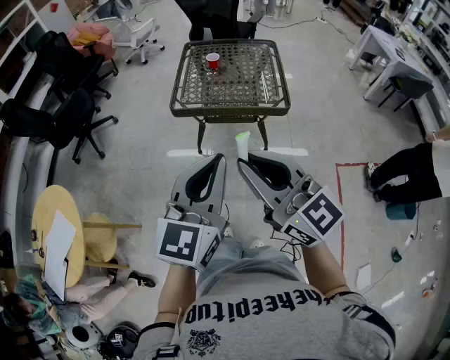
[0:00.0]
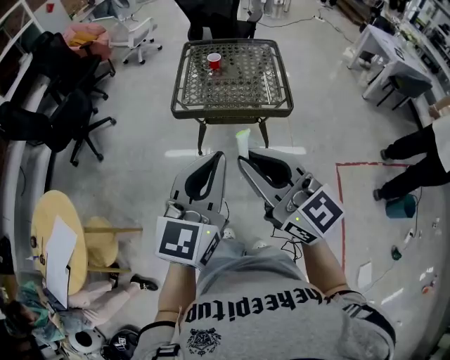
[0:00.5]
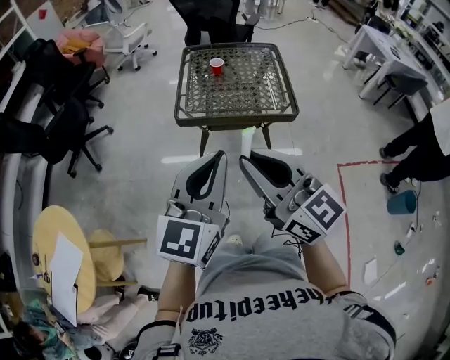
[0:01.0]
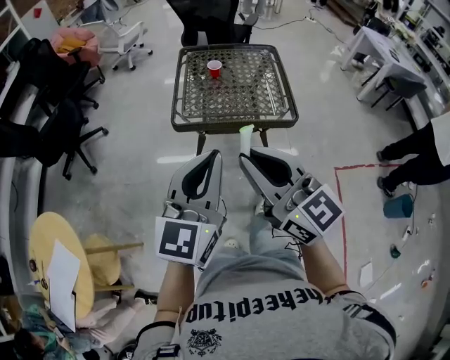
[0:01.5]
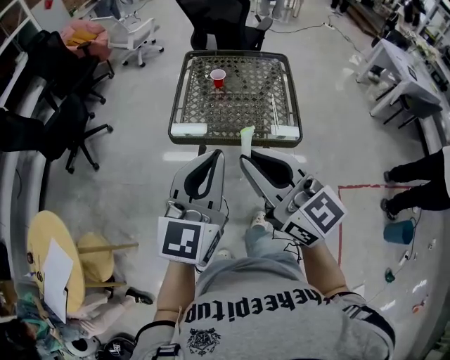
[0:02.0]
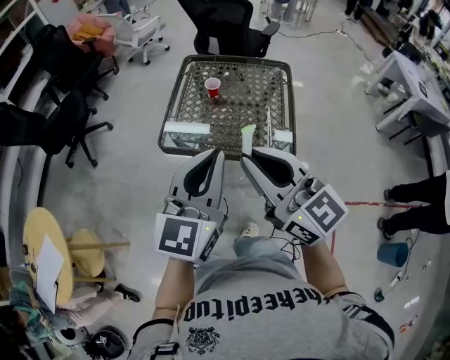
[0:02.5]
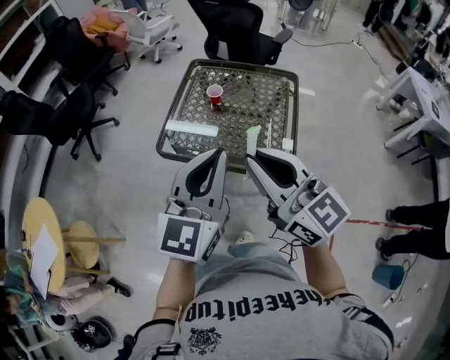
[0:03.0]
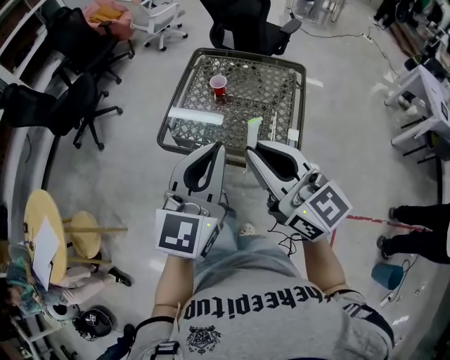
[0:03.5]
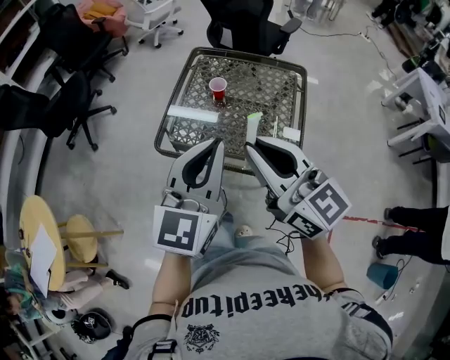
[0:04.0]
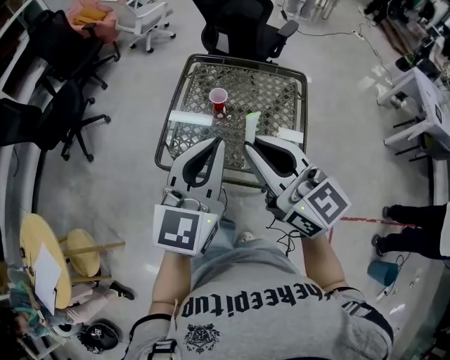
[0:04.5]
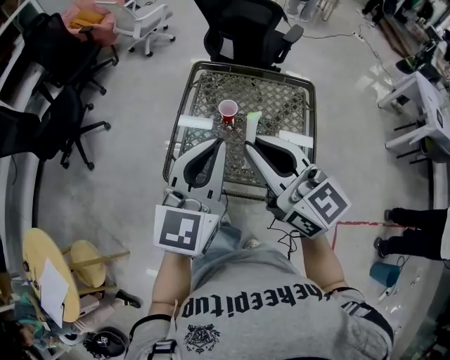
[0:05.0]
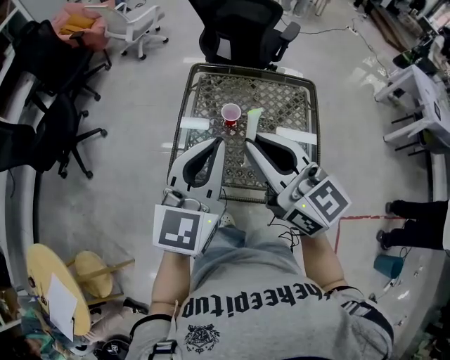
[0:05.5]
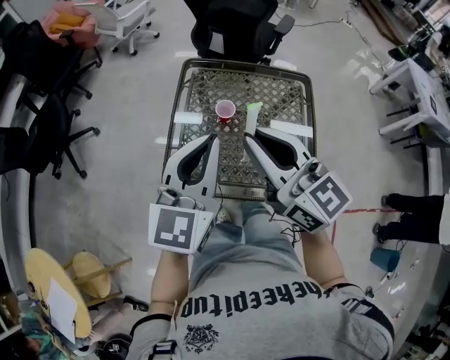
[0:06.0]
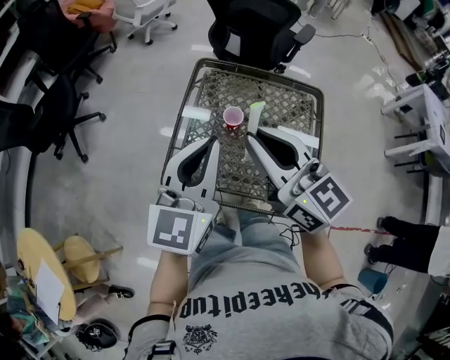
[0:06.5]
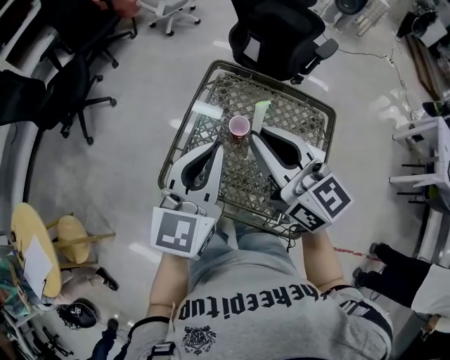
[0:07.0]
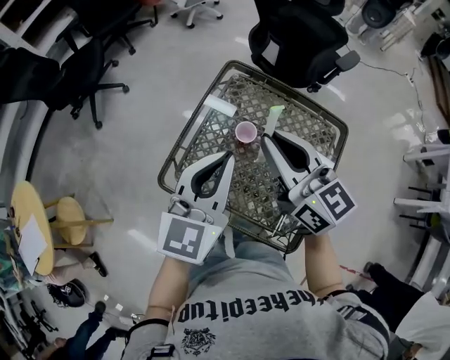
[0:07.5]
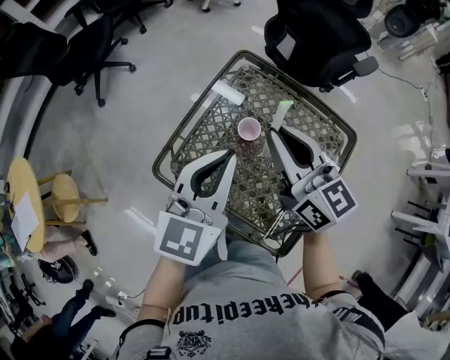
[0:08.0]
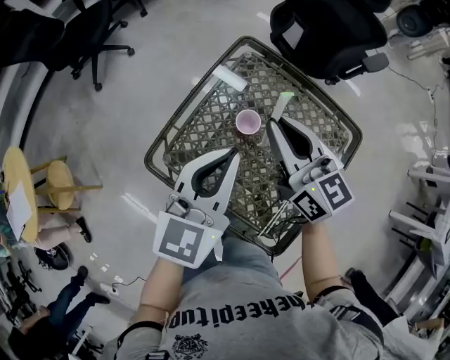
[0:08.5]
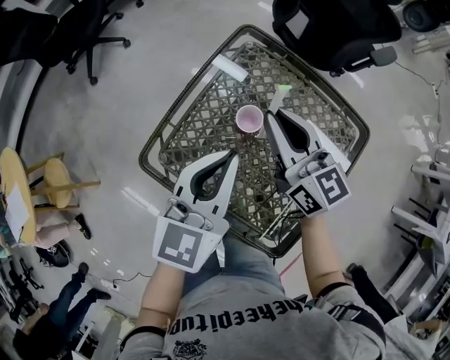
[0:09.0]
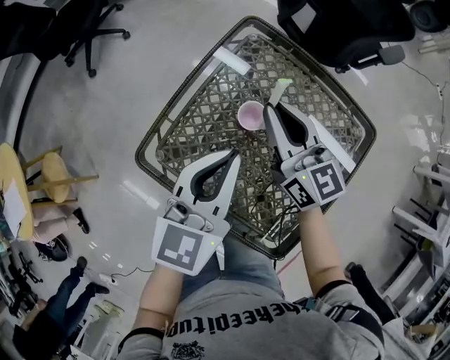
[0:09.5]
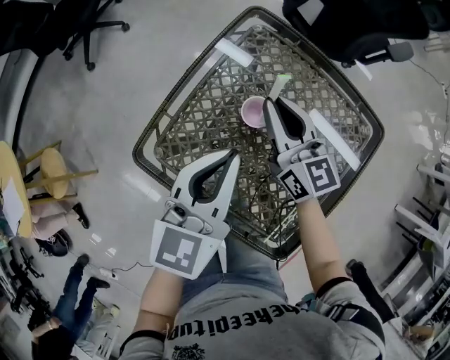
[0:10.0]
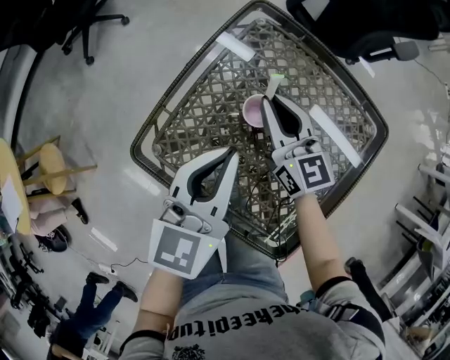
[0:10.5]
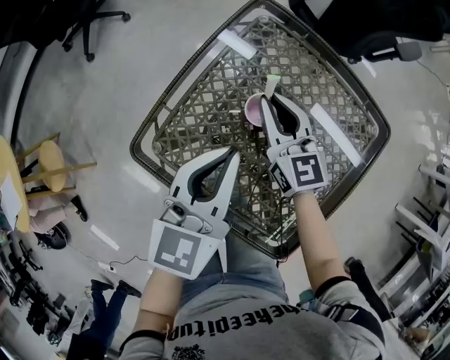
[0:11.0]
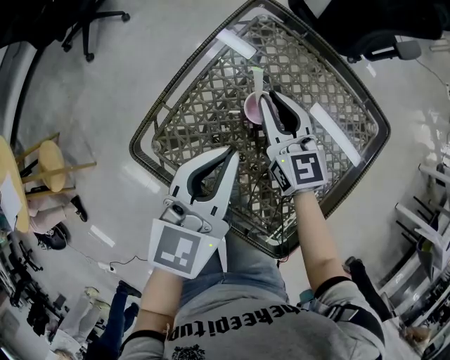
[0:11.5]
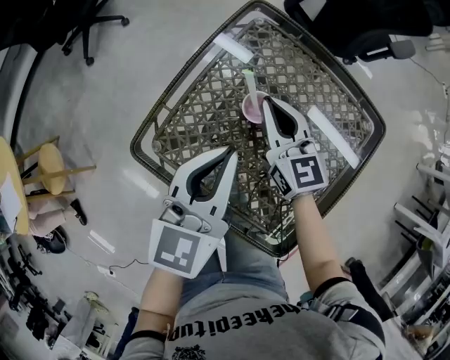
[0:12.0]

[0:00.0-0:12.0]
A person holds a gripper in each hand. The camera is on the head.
0:00.0 to 0:02.0: The grippers both shift forward by roughly 20 cm.
0:02.0 to 0:04.0: The two grippers go roughly 20 cm forward and to the right.
0:04.0 to 0:06.0: The two grippers go roughly 20 cm forward.
0:06.0 to 0:08.0: The right gripper is displaced forward, downward and to the right by approximately 20 cm, and changes its angle by some 20 degrees. Meanwhile the left gripper moves downward, forward and to the right, approximately 10 cm, and swivels approximately 20 degrees.
0:08.0 to 0:10.0: The right gripper heads downward and forward, covering approximately 20 cm. Meanwhile the left gripper travels downward by roughly 10 cm.
0:10.0 to 0:12.0: The grippers move only a little.

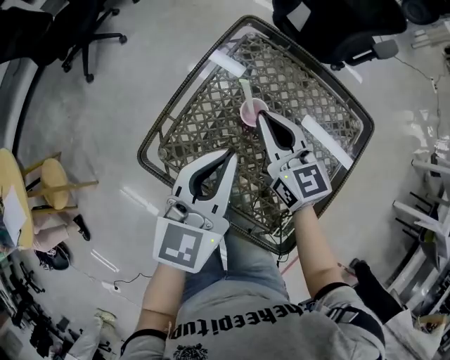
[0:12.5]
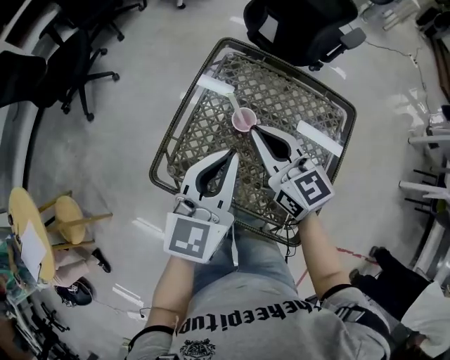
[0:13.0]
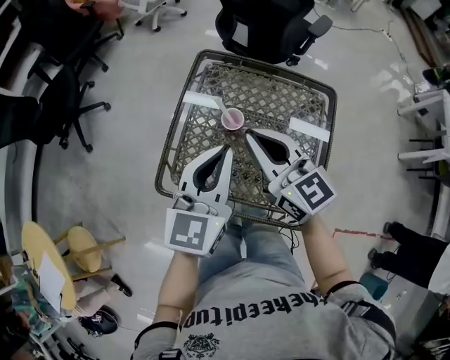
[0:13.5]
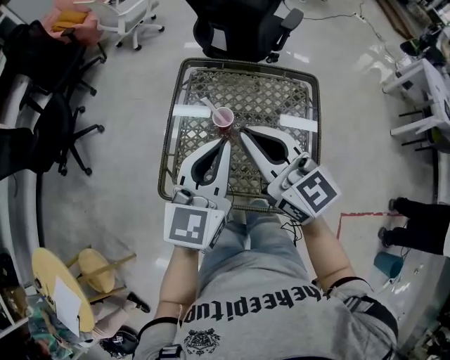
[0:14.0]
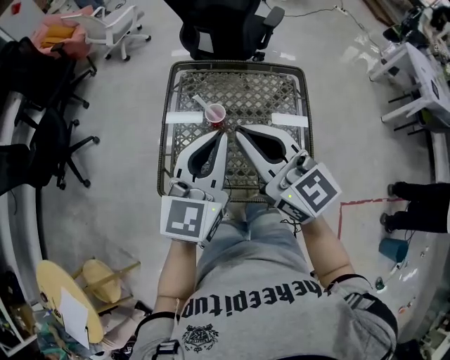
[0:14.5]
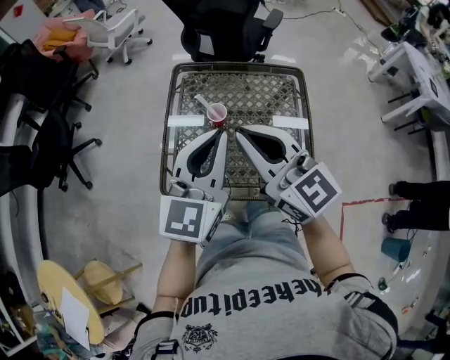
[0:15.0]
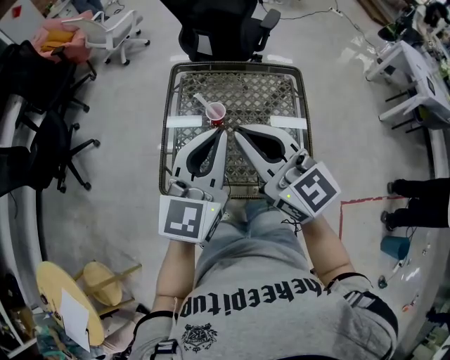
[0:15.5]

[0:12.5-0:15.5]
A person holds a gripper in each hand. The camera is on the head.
0:12.5 to 0:14.0: The right gripper moves upward and backward, roughly 25 cm; the left gripper is displaced upward by about 10 cm, and swivels roughly 20 degrees.
0:14.0 to 0:15.5: The left gripper moves some 5 cm. The right gripper travels backward by about 5 cm.

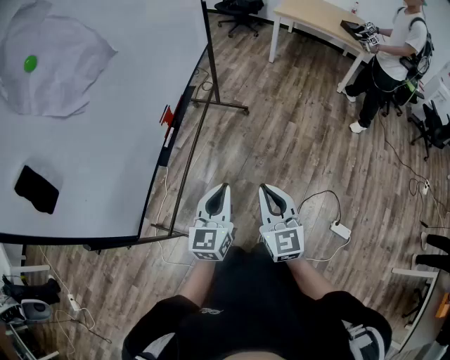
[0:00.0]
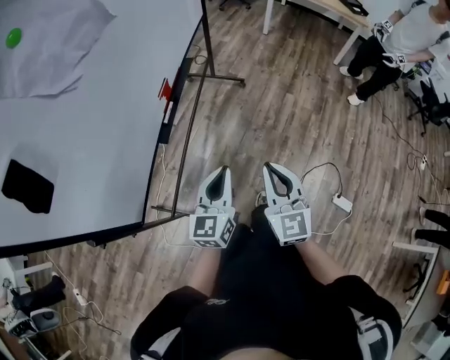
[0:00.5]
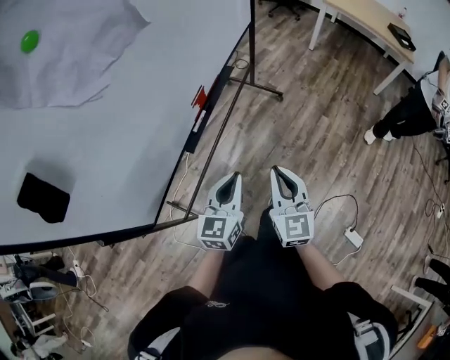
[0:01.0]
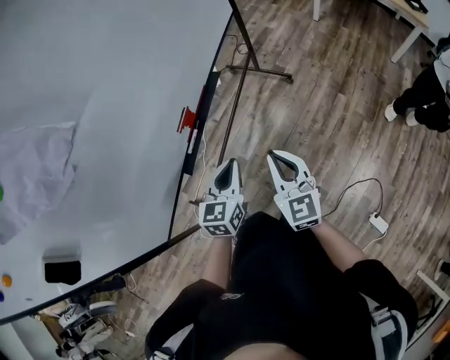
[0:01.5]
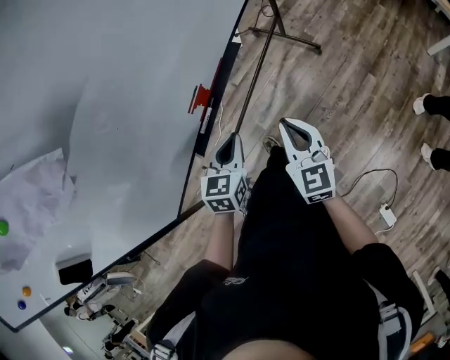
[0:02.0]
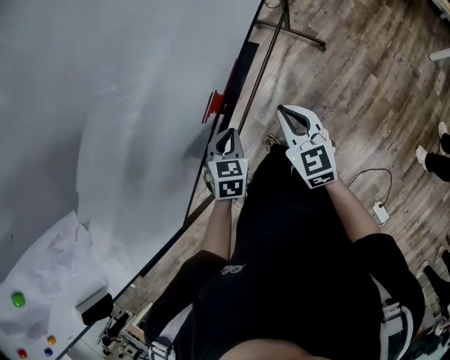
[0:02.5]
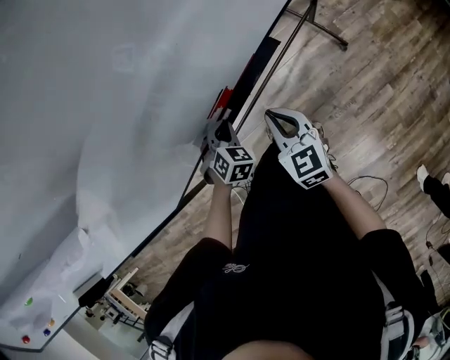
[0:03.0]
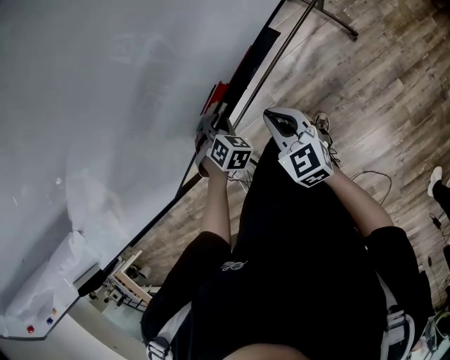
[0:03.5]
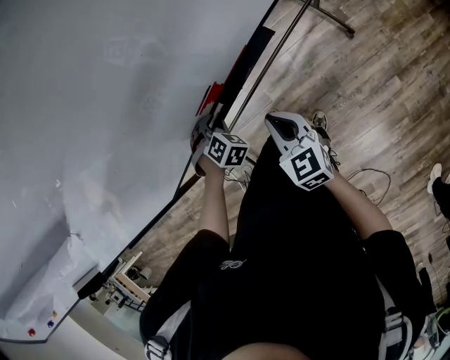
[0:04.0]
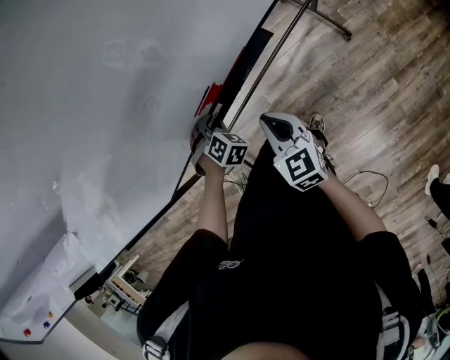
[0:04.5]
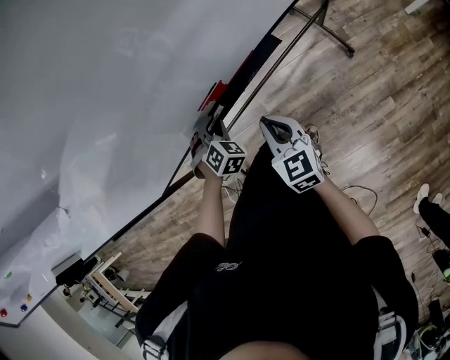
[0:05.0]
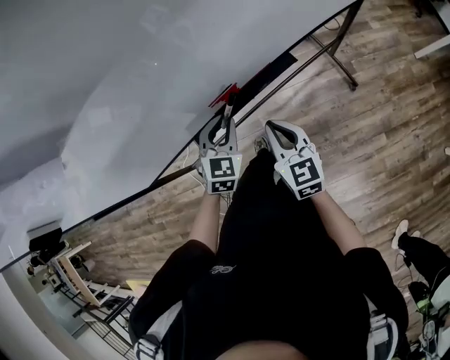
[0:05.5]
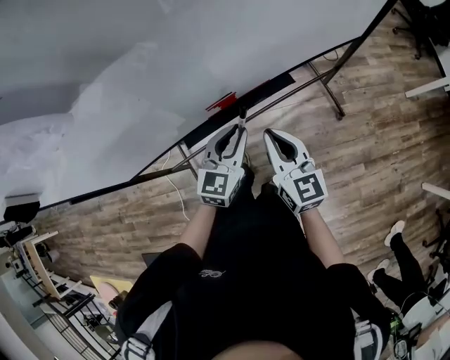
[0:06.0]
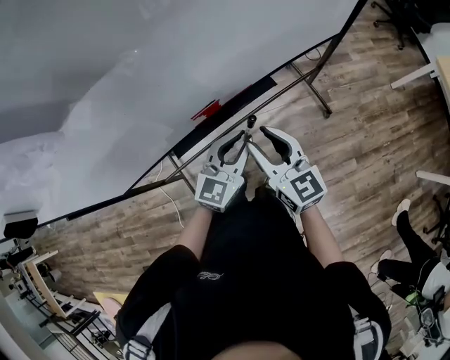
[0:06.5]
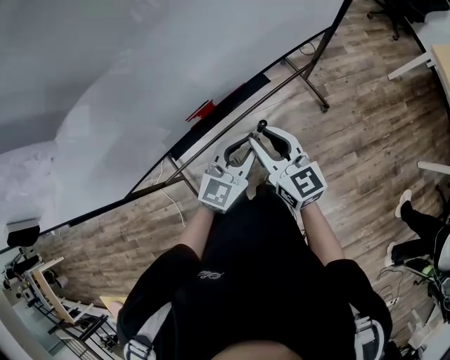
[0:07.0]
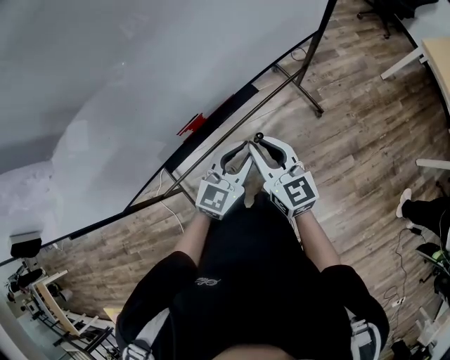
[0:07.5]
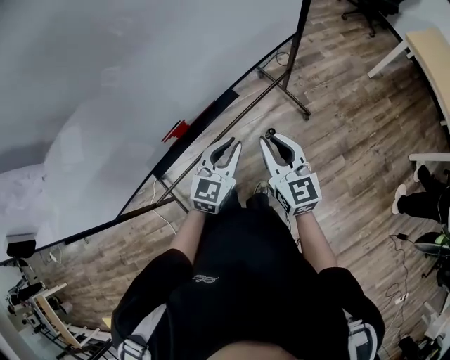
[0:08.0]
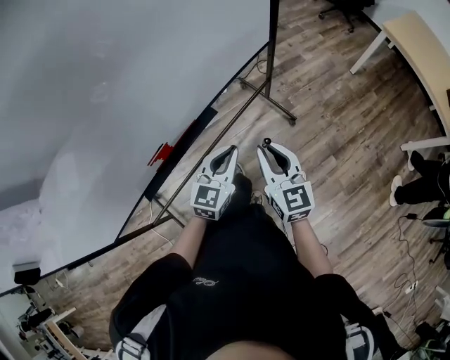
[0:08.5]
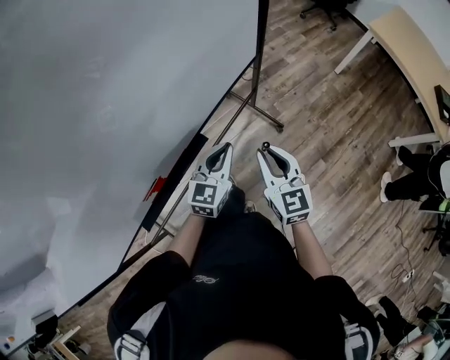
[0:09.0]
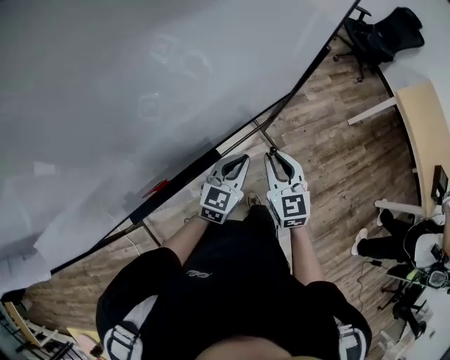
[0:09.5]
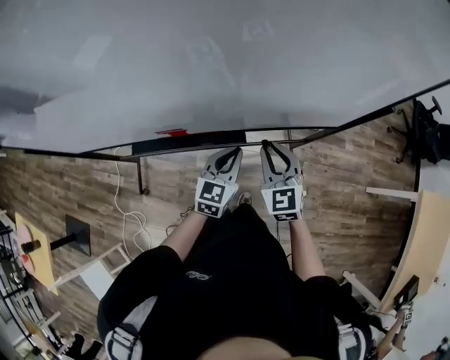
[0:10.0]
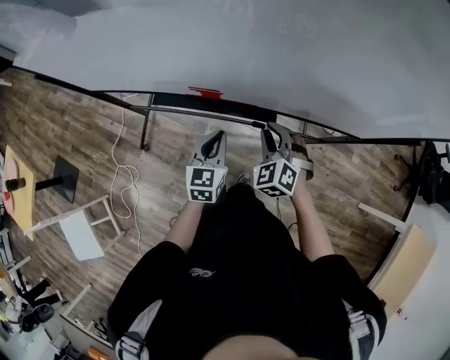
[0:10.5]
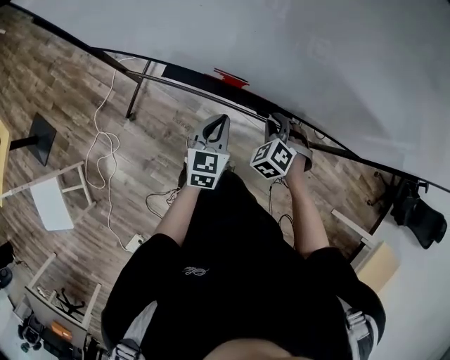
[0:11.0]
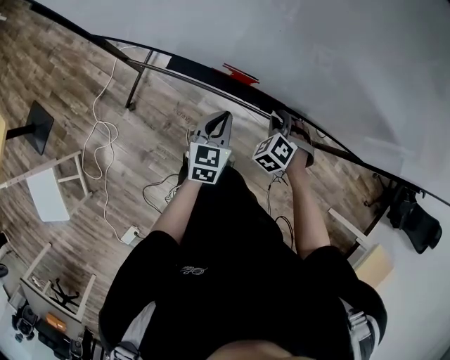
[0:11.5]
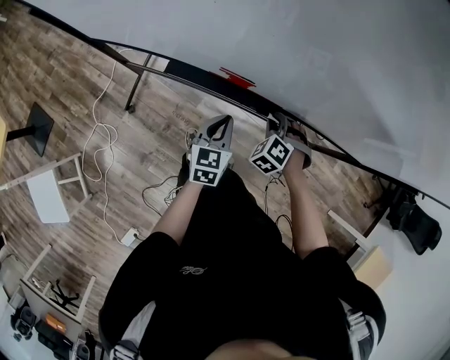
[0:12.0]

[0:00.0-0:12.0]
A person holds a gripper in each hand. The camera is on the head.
0:00.0 to 0:02.0: Both grippers move forward, about 30 cm. The left gripper changes its angle by roughly 30 degrees, while the right gripper changes its angle by roughly 20 degrees.
0:02.0 to 0:04.0: The left gripper changes place by some 25 cm, and rotates approximately 60 degrees. The right gripper changes place by some 15 cm, and rotates about 30 degrees.
0:04.0 to 0:06.0: The right gripper moves upward, roughly 10 cm; the left gripper shifts approximately 20 cm upward, to the right and backward, and points its fingers about 40 degrees further upward.
0:06.0 to 0:08.0: The two grippers go about 15 cm to the right.
0:08.0 to 0:10.0: The left gripper moves approximately 15 cm, and turns by roughly 40 degrees. Meanwhile the right gripper shifts by about 20 cm, and changes its angle by about 40 degrees.
0:10.0 to 0:12.0: The left gripper moves to the left and downward, some 25 cm, and turns by approximately 30 degrees. The right gripper goes approximately 25 cm downward and to the left, and twists about 50 degrees counterclockwise, seen from behind.
